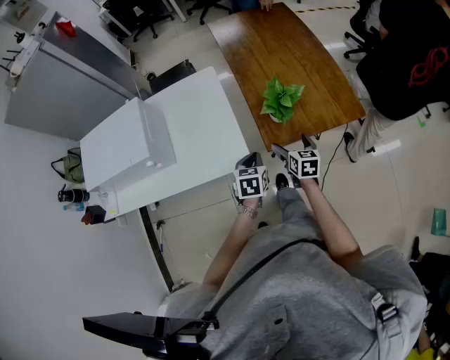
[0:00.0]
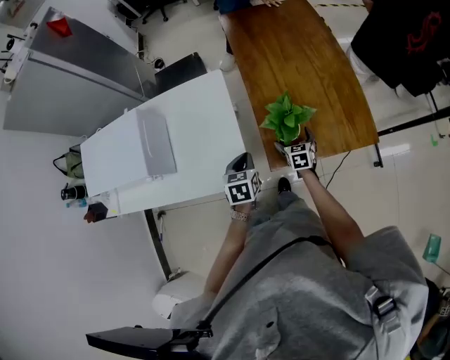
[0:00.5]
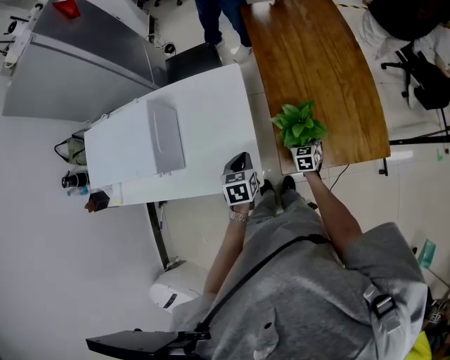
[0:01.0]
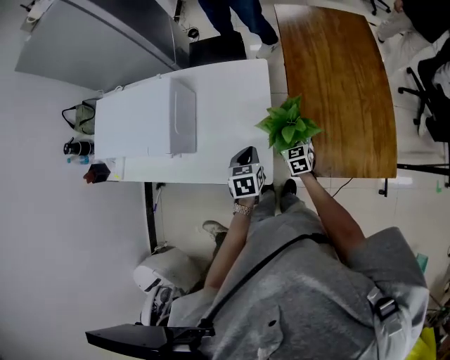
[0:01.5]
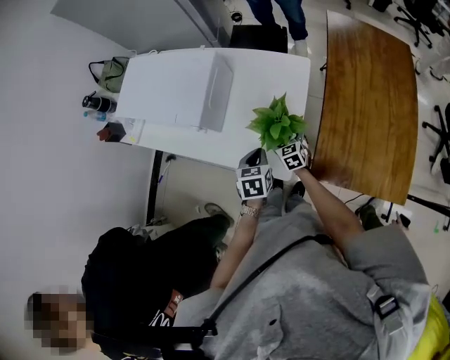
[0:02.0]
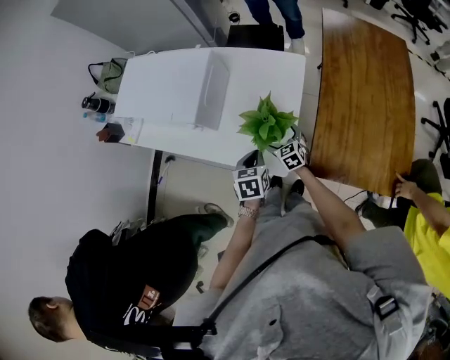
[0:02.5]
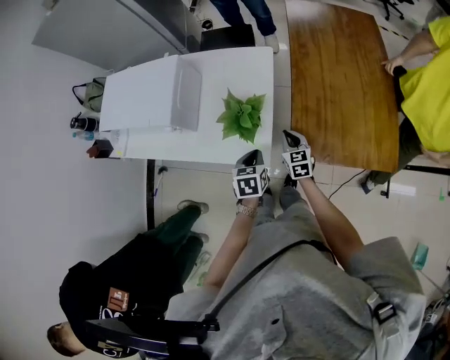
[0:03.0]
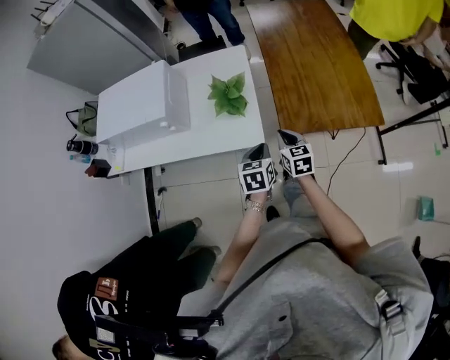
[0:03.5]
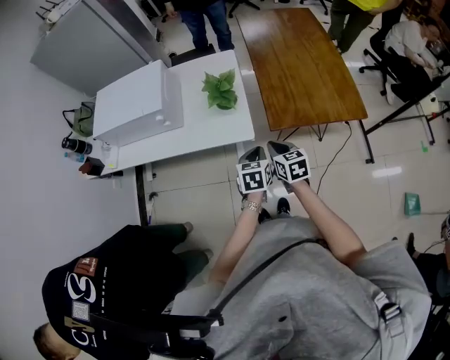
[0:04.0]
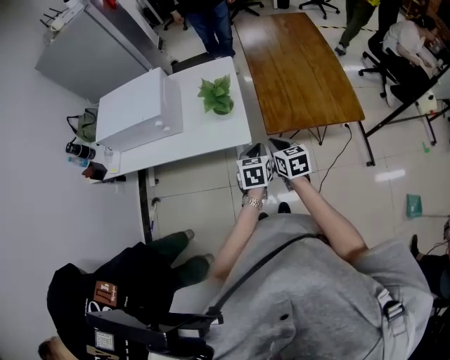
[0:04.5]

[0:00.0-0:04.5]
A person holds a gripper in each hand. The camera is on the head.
0:00.0 to 0:02.0: The left gripper changes place by approximately 20 cm, and rotates roughly 30 degrees. Meanwhile the right gripper changes place by roughly 30 cm, and swivels some 50 degrees.
0:02.0 to 0:04.5: The right gripper shifts by some 40 cm, turns by approximately 30 degrees, and closes; the left gripper moves some 25 cm, and rotates approximately 30 degrees.

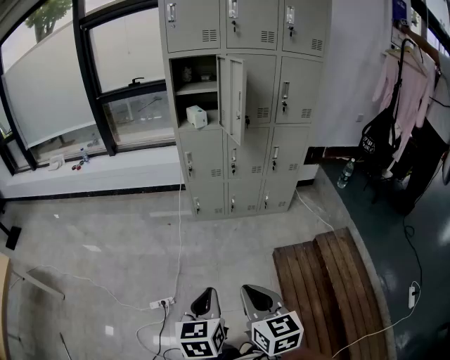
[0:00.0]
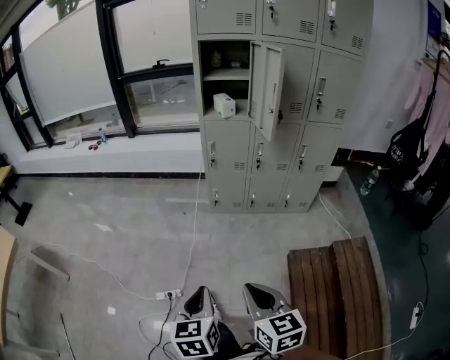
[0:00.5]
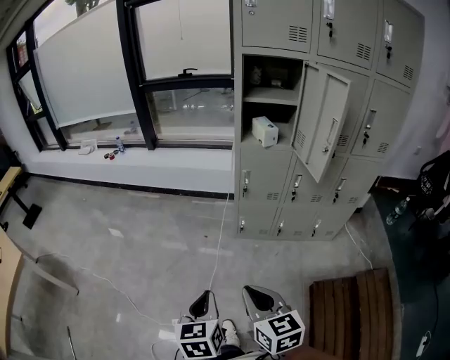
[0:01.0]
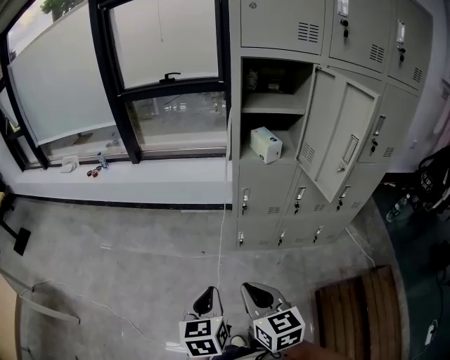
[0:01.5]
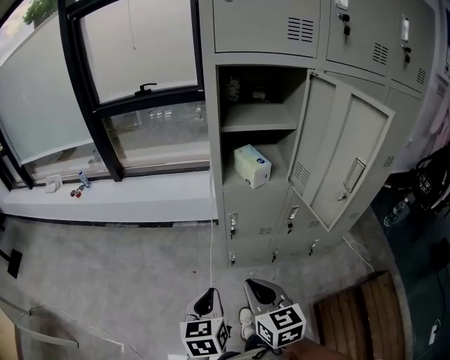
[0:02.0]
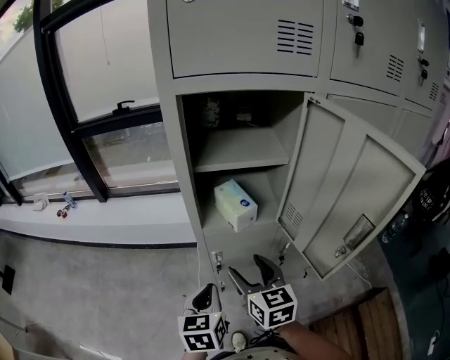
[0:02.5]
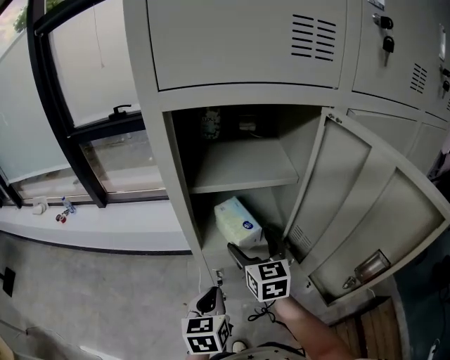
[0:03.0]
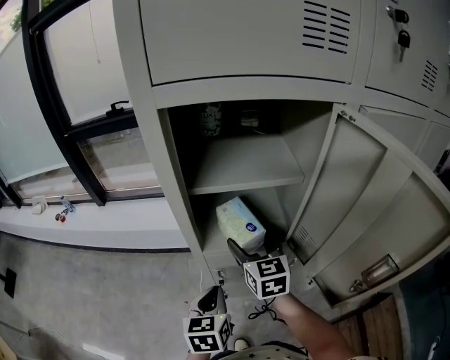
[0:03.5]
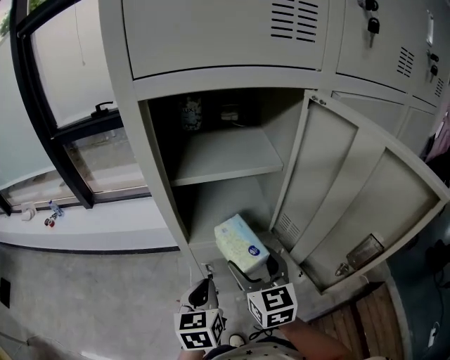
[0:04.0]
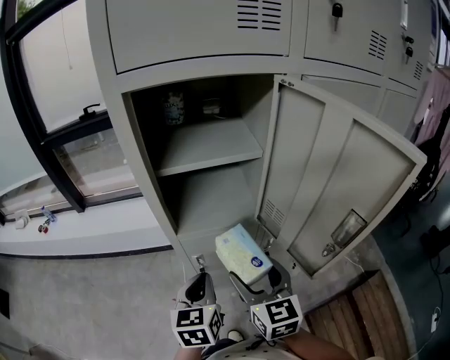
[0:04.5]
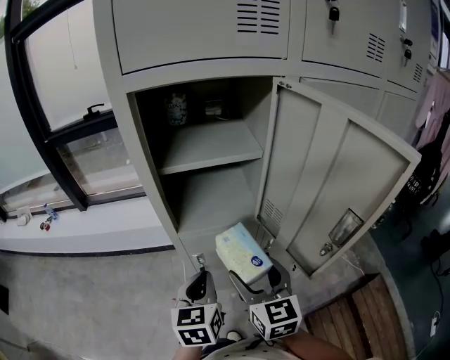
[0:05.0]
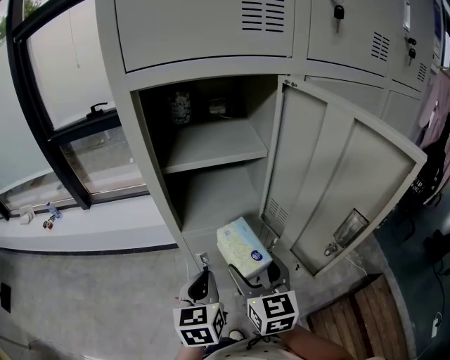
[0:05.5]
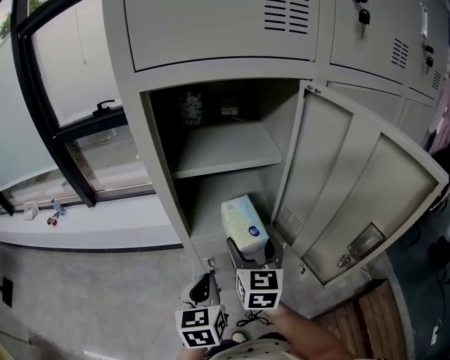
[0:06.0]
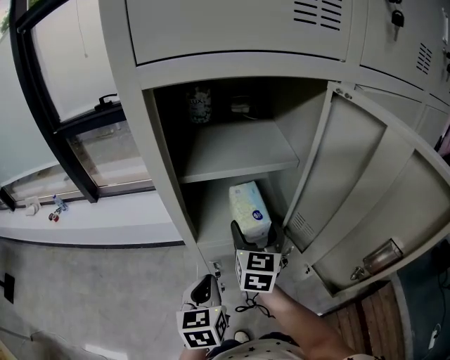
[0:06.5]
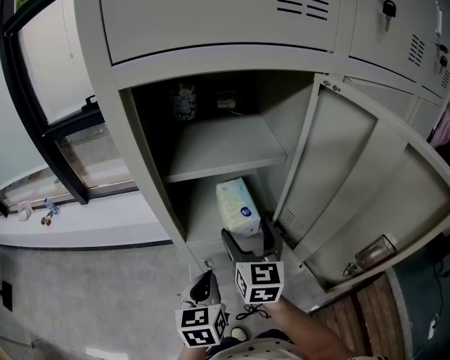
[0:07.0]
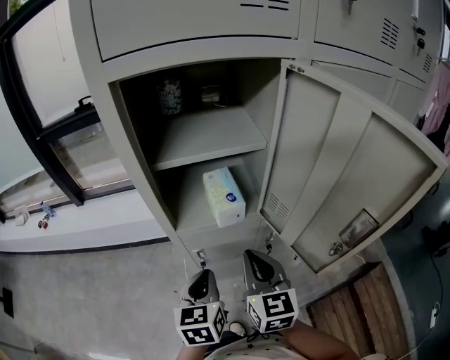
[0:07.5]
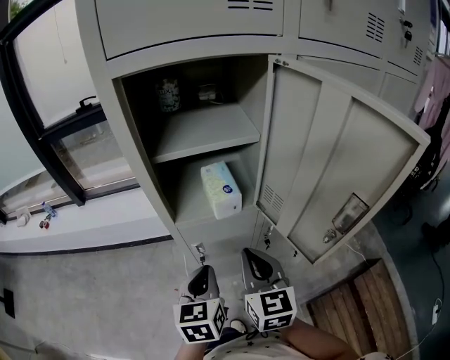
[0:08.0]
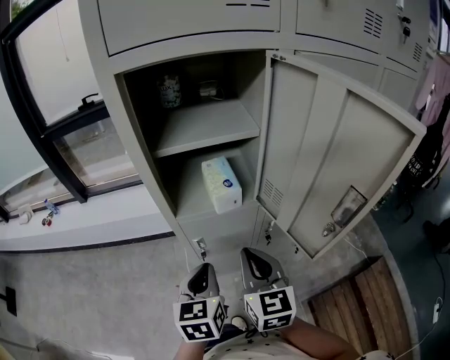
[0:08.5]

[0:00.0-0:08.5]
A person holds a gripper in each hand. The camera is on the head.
0:00.0 to 0:02.0: Both grippers are carried forward, roughly 60 cm.
0:02.0 to 0:04.0: The two grippers go some 30 cm forward and to the right. The right gripper opens.
0:04.0 to 0:06.5: The right gripper travels forward by approximately 10 cm.
0:06.5 to 0:08.5: The right gripper is displaced backward by some 20 cm, and closes its fingers; the left gripper goes about 5 cm backward.

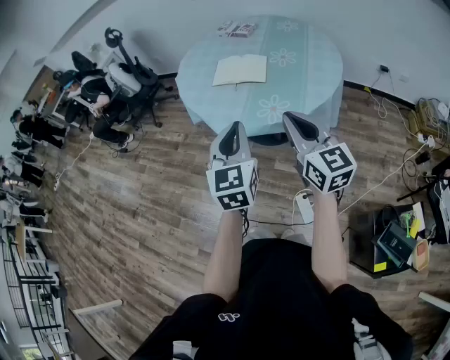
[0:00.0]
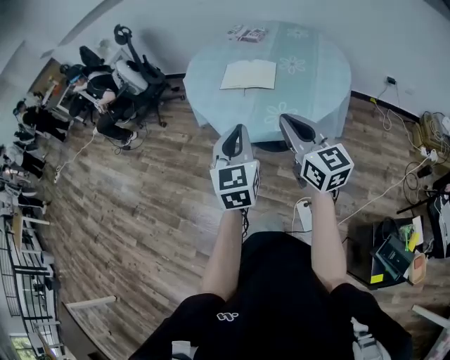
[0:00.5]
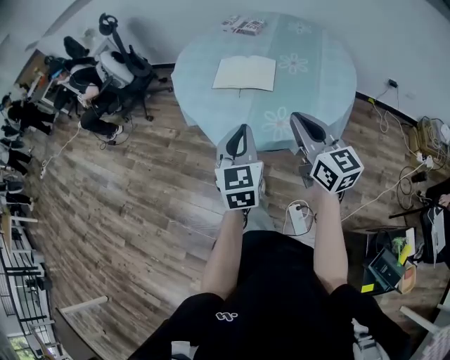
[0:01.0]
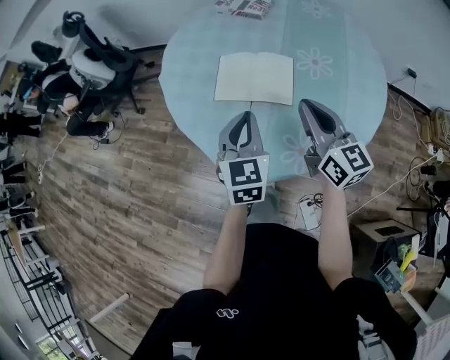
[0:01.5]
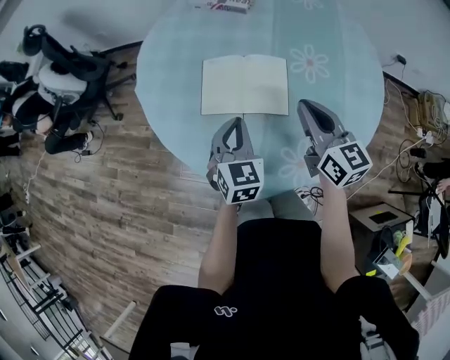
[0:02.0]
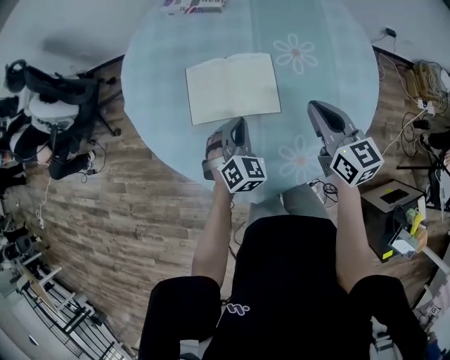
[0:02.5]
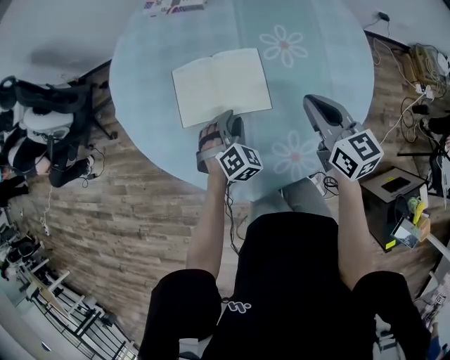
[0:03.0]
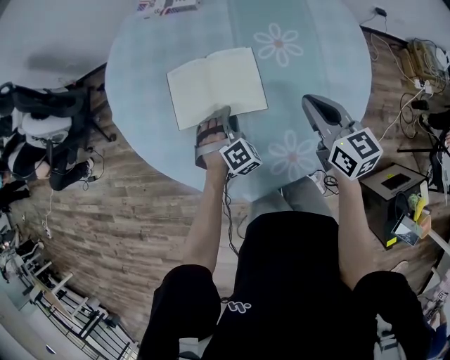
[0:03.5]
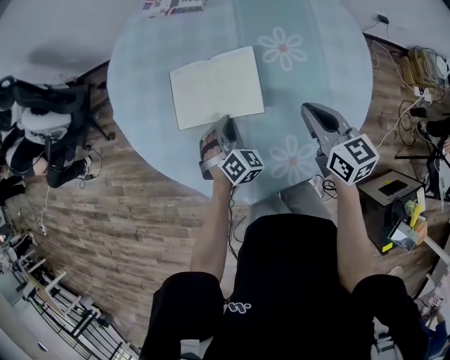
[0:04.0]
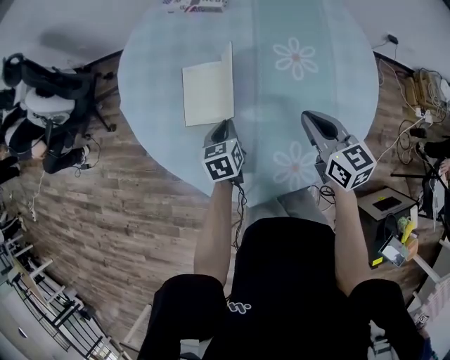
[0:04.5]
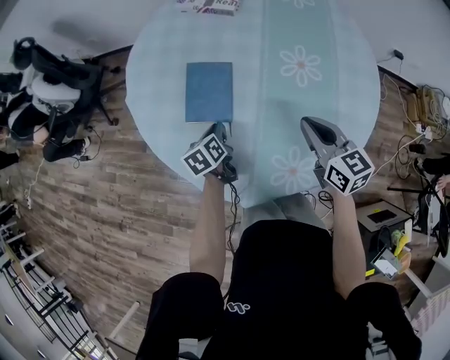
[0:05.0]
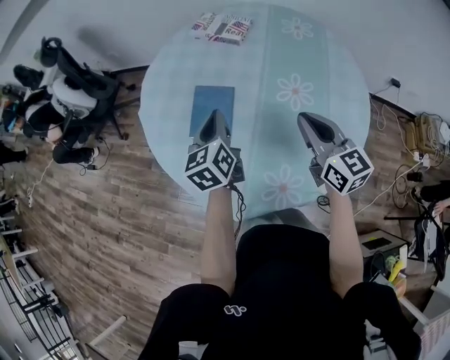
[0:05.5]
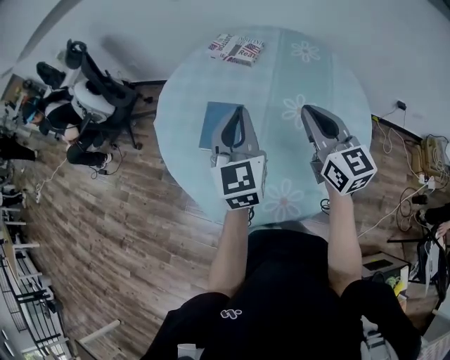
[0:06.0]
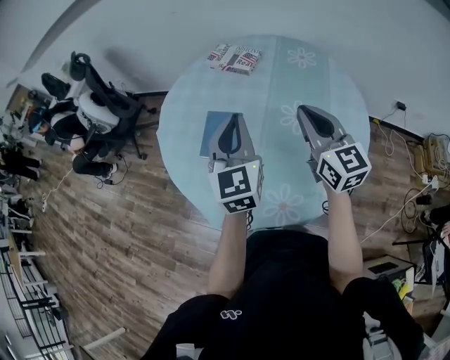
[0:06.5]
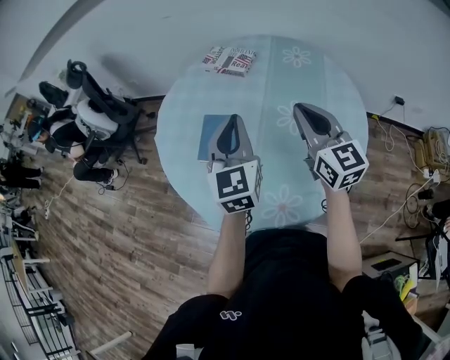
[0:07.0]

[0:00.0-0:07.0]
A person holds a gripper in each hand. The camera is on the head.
0:00.0 to 0:02.0: The two grippers travel together, forward, approximately 40 cm. The left gripper moves downward, about 20 cm, and turns by some 20 degrees.
0:02.0 to 0:03.5: The right gripper moves to the right and downward, about 10 cm, while the left gripper goes some 15 cm downward and to the right, twists roughly 60 degrees clockwise, seen from behind, and opens up.
0:03.5 to 0:05.0: The left gripper heads to the left, covering about 10 cm, and rolls counterclockwise, seen from behind, by some 110 degrees.
0:05.0 to 0:07.0: The left gripper shifts roughly 35 cm upward and to the right, and points its fingers about 40 degrees further upward. Meanwhile the right gripper travels upward by roughly 20 cm, and rotates roughly 30 degrees.

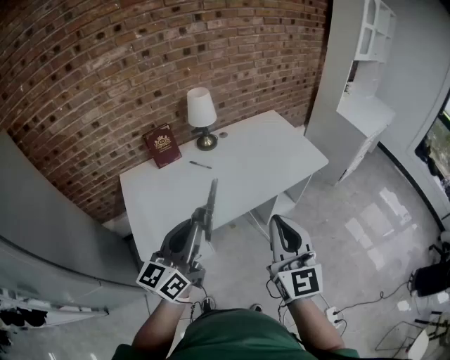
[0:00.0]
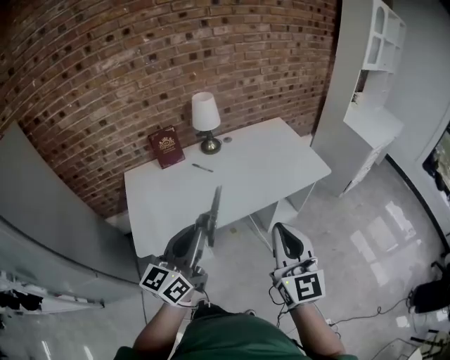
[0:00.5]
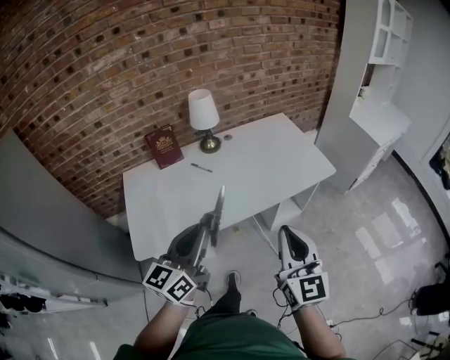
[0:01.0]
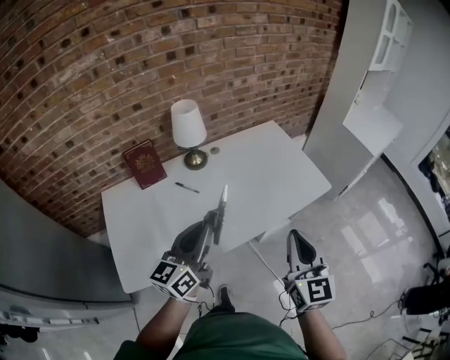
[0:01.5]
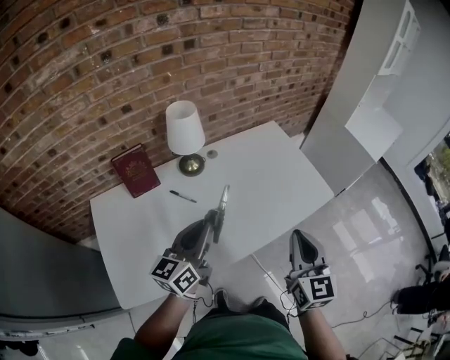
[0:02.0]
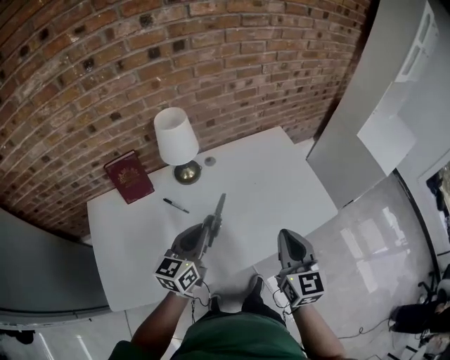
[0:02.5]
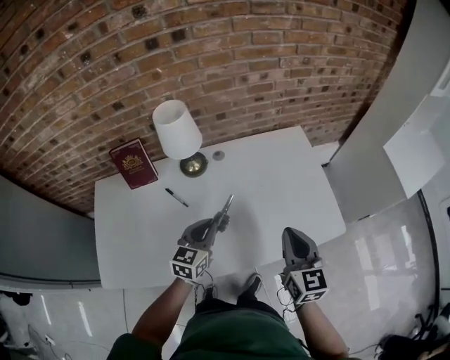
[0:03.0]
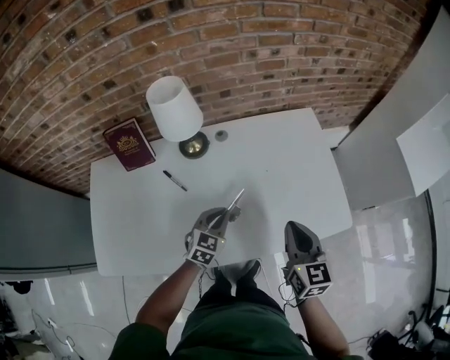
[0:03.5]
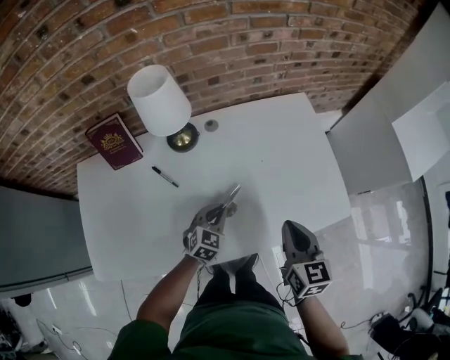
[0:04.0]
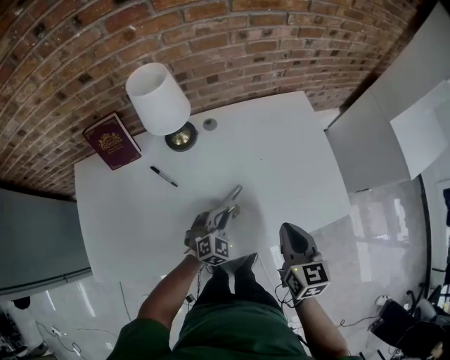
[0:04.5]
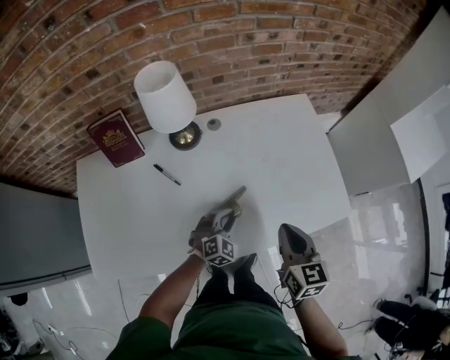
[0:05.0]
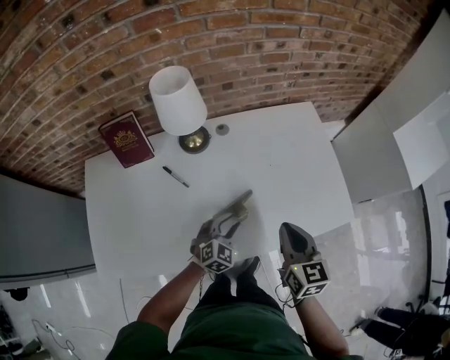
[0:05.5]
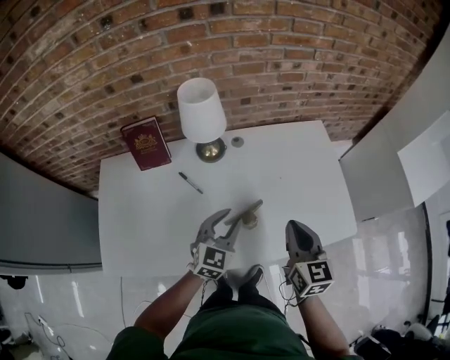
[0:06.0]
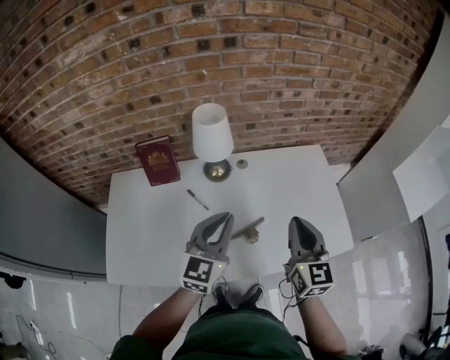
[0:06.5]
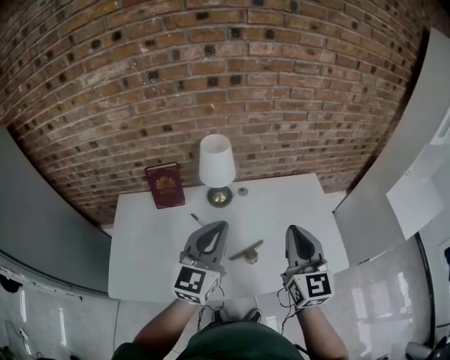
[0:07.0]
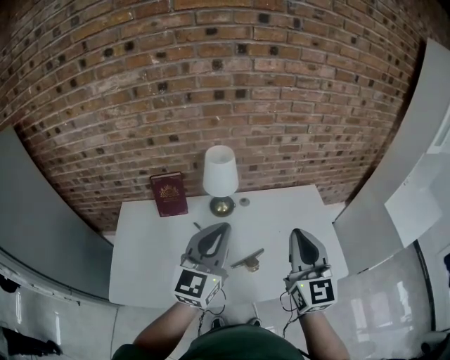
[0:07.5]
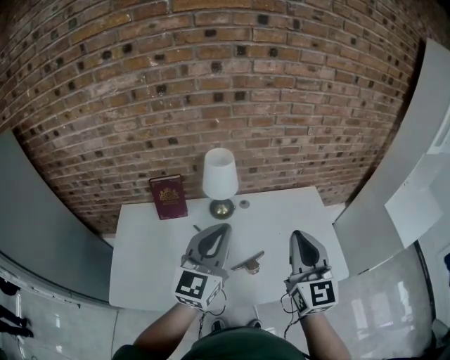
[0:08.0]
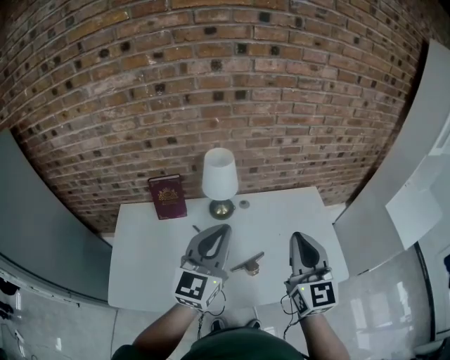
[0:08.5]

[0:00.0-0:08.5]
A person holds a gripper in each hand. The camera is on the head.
0:00.0 to 0:02.0: Both grippers travel together forward, some 30 cm.
0:02.0 to 0:04.0: The left gripper heads downward, forward and to the right, covering some 35 cm, and angles its fingers downward, by approximately 40 degrees; the right gripper shifts some 25 cm forward, downward and to the right, and rotates approximately 30 degrees.
0:04.0 to 0:06.5: The right gripper travels upward and to the left by approximately 15 cm, and rotates approximately 20 degrees. Meanwhile the left gripper goes about 30 cm upward, tips its fingers upward by about 30 degrees, and opens and closes again.
0:06.5 to 0:08.5: The grippers both shift upward by roughly 10 cm.
